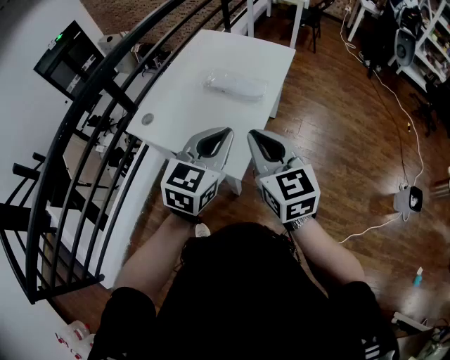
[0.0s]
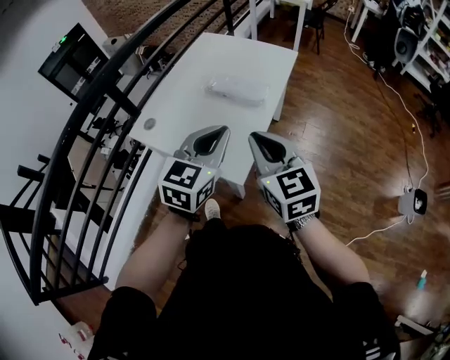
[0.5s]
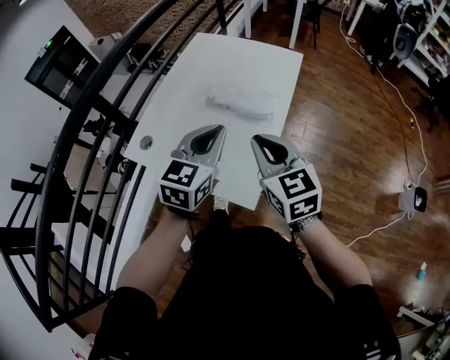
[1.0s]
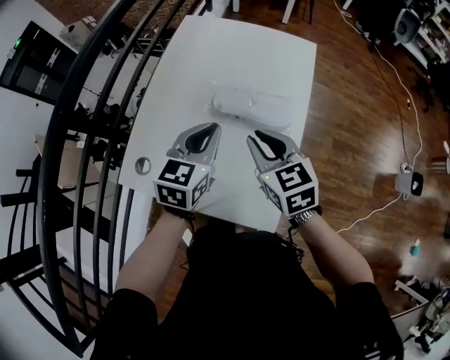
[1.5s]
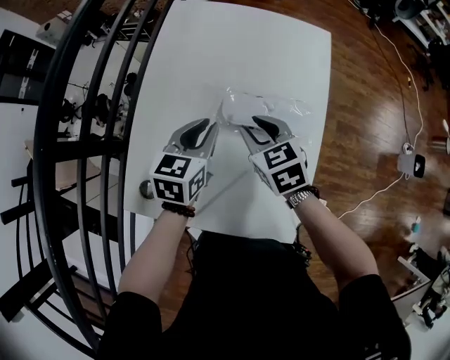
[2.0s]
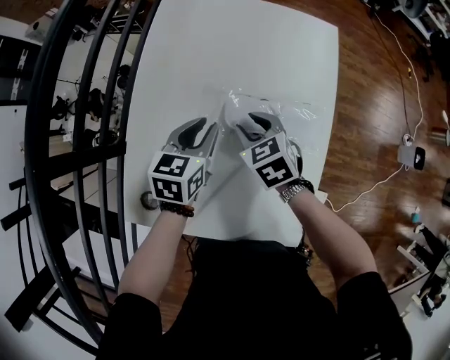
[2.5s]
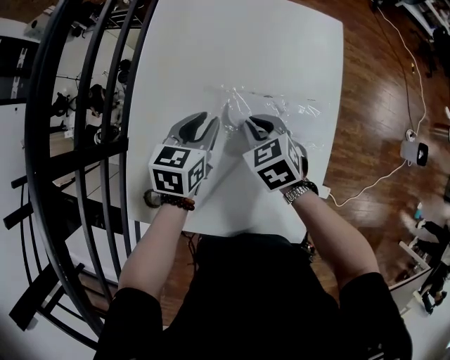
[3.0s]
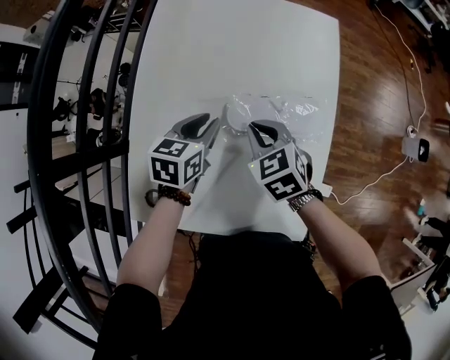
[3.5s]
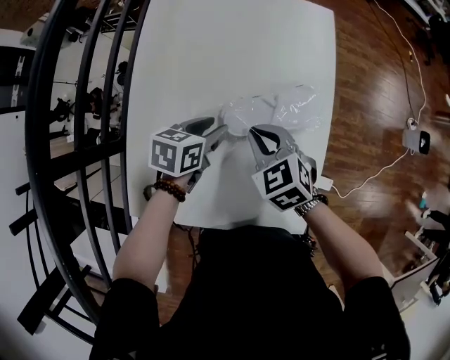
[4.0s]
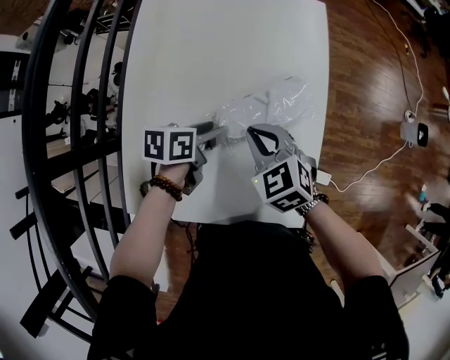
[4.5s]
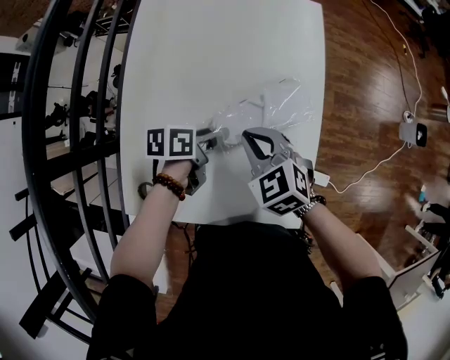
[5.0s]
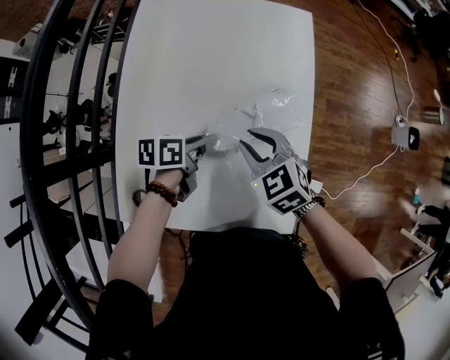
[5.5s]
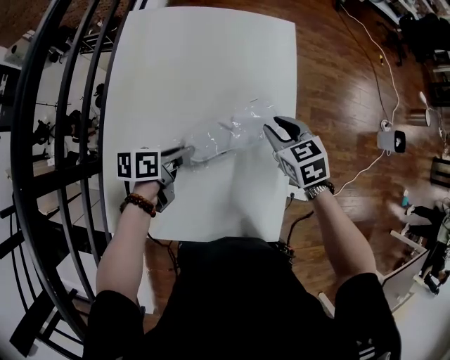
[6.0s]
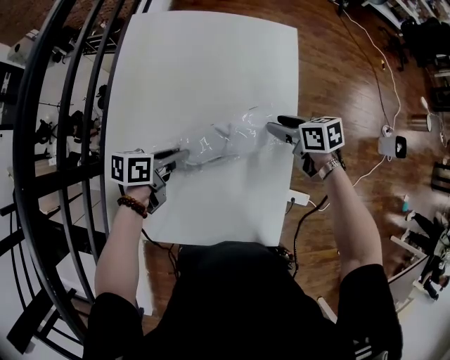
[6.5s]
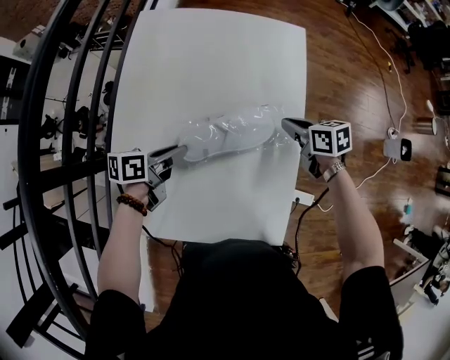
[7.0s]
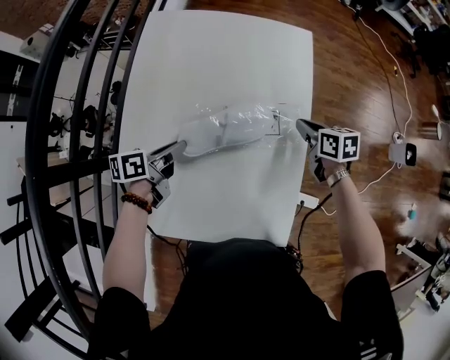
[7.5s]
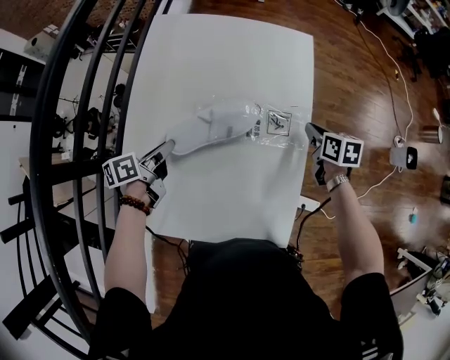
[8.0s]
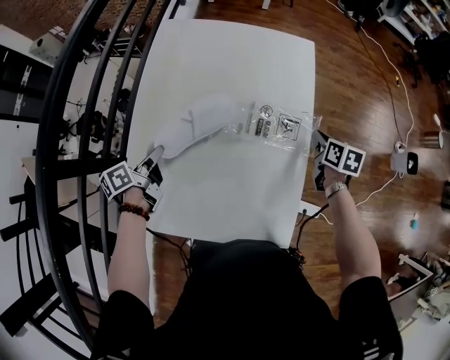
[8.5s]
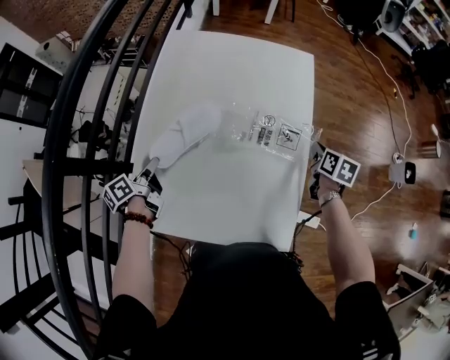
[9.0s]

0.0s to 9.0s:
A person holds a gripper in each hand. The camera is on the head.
0.0s to 2.0s: The left gripper moves forward, downward and to the left, about 40 cm, and swivels approximately 30 degrees, while the right gripper travels forward and downward by roughly 35 cm, angles its fingers downward, by roughly 30 degrees, and opens its fingers.
2.0s to 4.5s: The right gripper shifts some 5 cm backward, and closes its fingers; the left gripper goes some 10 cm downward, rotates approximately 40 degrees, and opens up.
4.5s to 7.0s: The left gripper goes about 5 cm to the left, and closes up, while the right gripper goes about 20 cm to the right and forward, twists roughly 40 degrees clockwise, seen from behind, and opens, then closes once more.
7.0s to 9.0s: The right gripper heads to the right, covering roughly 10 cm, and swivels roughly 40 degrees. The left gripper heads to the left, covering some 15 cm, and changes its angle by some 40 degrees.

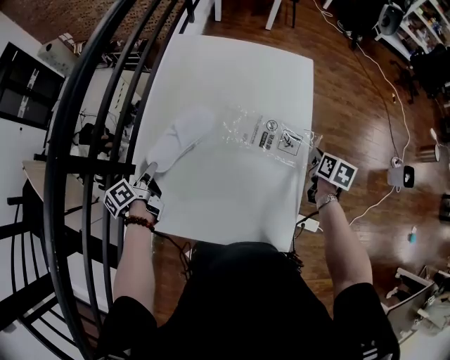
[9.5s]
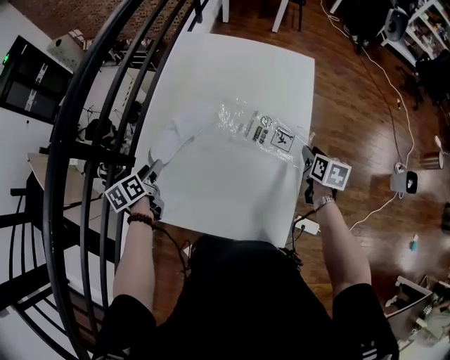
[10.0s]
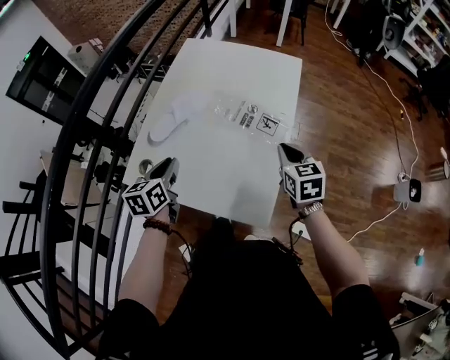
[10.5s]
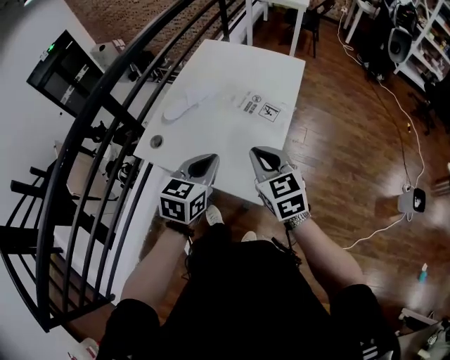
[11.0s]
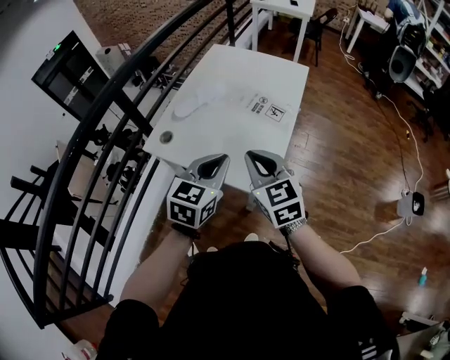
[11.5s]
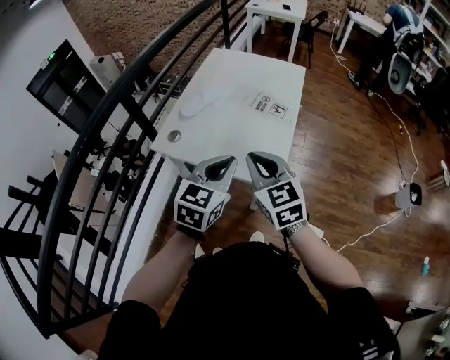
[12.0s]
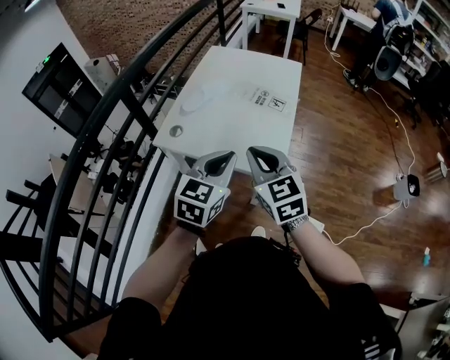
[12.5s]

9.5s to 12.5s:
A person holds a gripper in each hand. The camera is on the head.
9.5s to 11.0s: The right gripper moves backward, upward and to the left, about 30 cm, rotates roughly 60 degrees, and opens, then closes again. Meanwhile the left gripper travels to the right, backward and upward by about 40 cm, rotates around the line of its fingers by approximately 60 degrees, clockwise from behind, and opens, then closes again.
11.0s to 12.5s: The right gripper travels backward, to the left and upward by some 15 cm, while the left gripper is displaced backward and upward by roughly 10 cm.

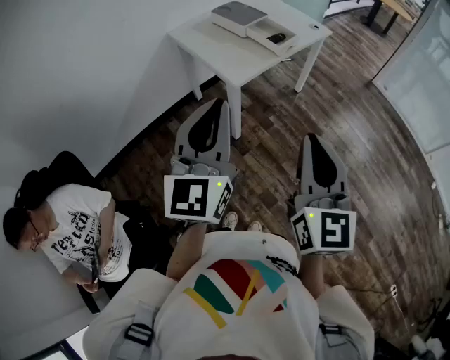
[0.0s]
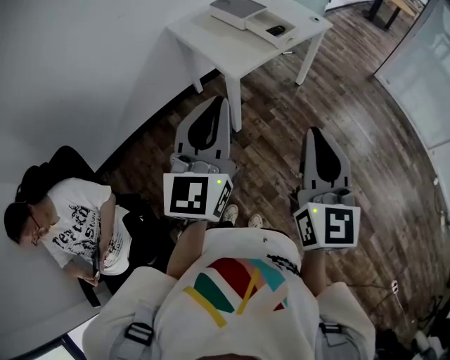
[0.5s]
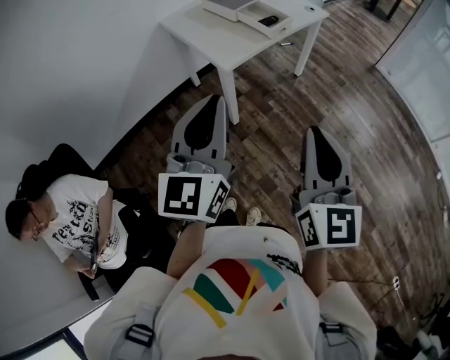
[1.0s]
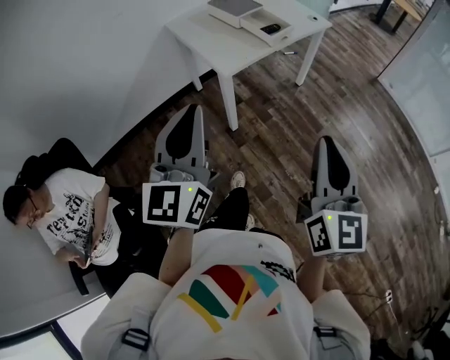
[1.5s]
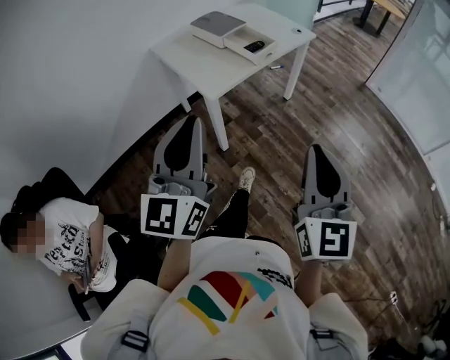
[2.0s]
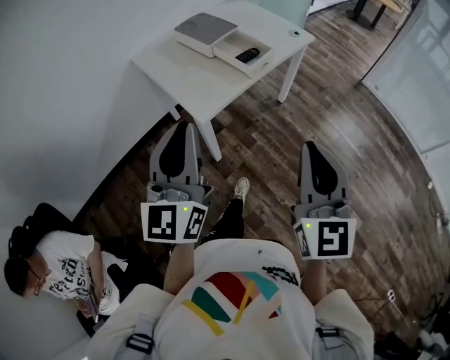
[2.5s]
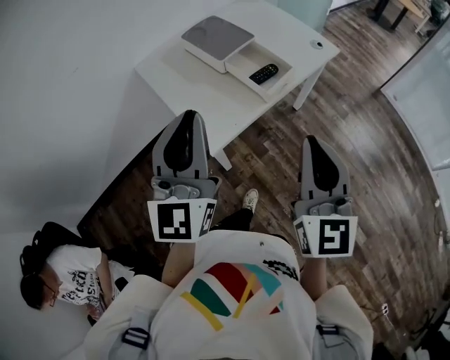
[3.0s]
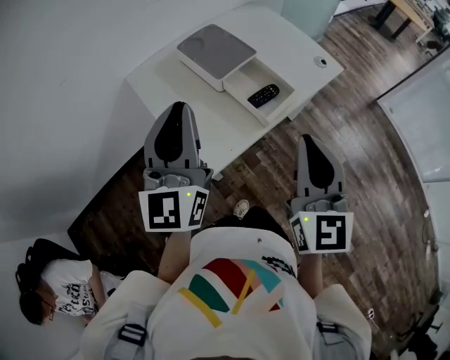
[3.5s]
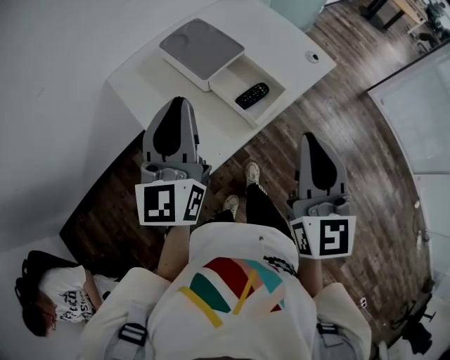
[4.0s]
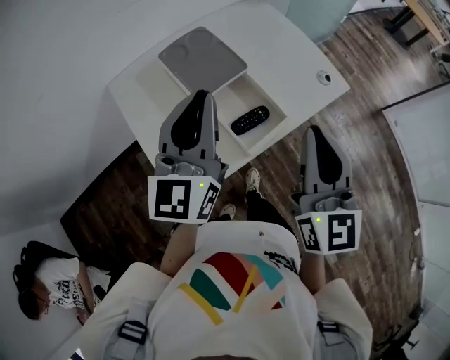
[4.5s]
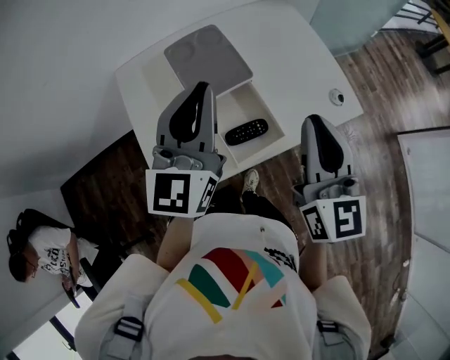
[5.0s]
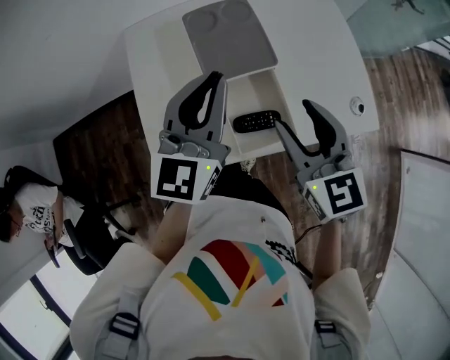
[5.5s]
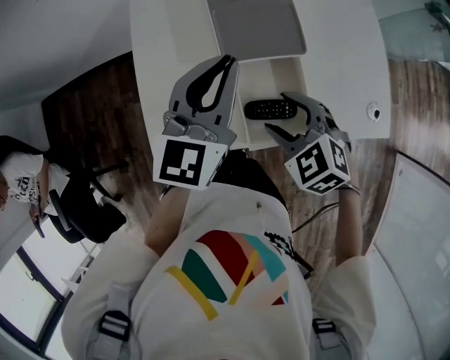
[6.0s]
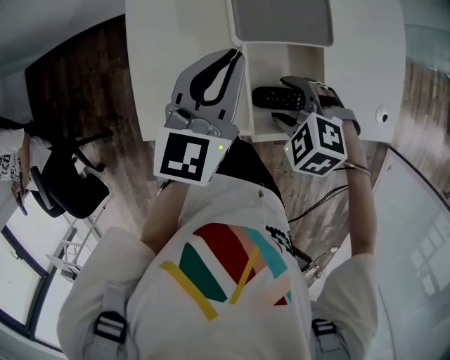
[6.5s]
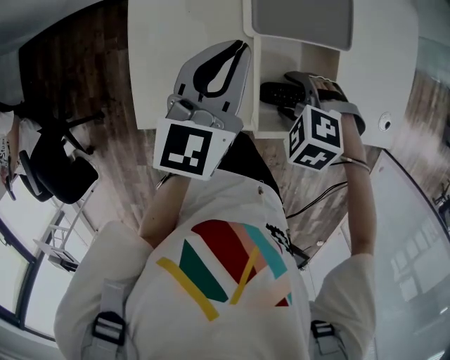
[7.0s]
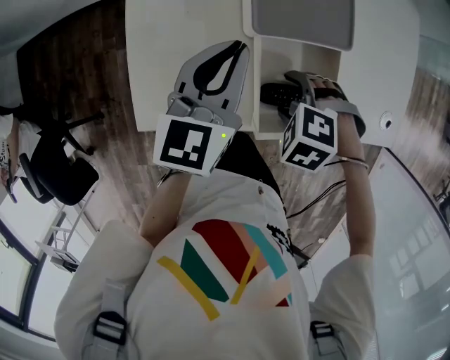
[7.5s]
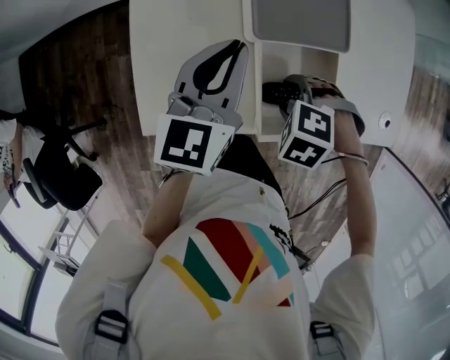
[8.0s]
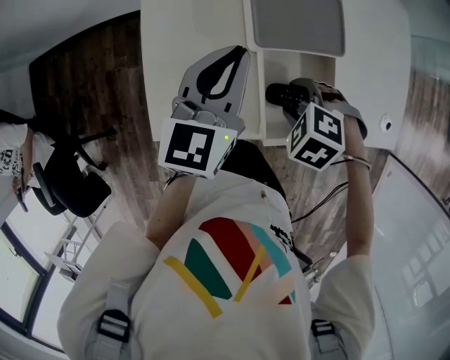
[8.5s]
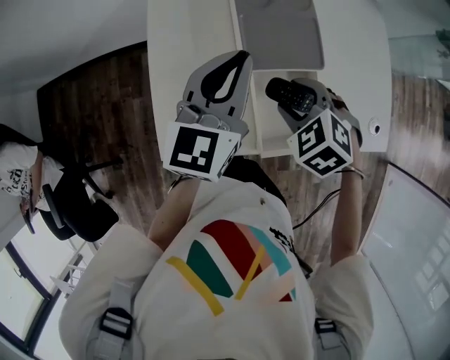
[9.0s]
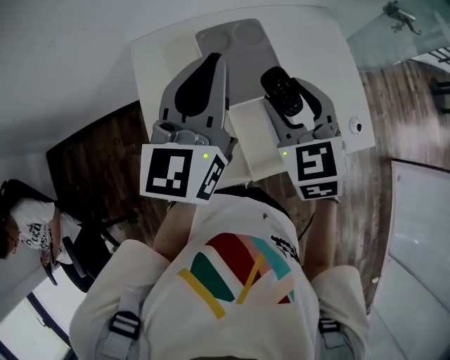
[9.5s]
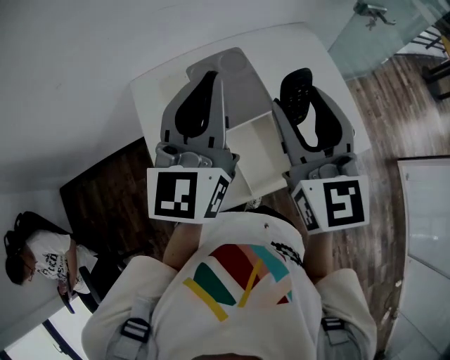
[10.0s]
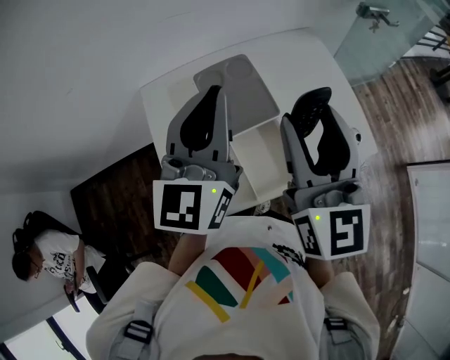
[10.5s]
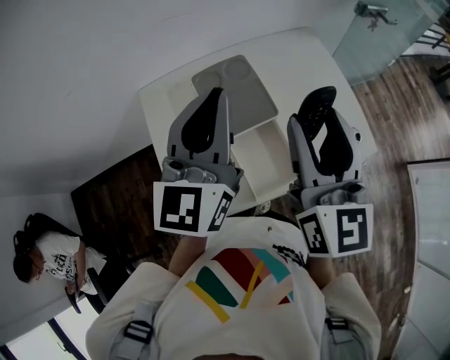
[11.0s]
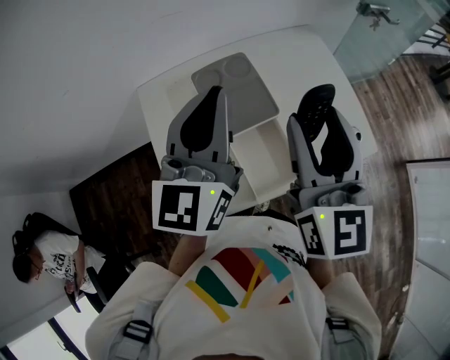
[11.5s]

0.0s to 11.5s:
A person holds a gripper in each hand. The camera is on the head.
0.0s to 2.0s: The left gripper travels to the right by about 5 cm; the right gripper heads to the right, covering about 10 cm.
2.0s to 4.0s: Both grippers are carried forward, approximately 50 cm.
4.0s to 6.0s: The left gripper shifts by approximately 20 cm, and swivels roughly 20 degrees. Meanwhile the right gripper moves downward, approximately 25 cm, points its fingers about 50 degrees further downward, and opens its fingers.
6.0s to 7.5s: The grippers both shift downward by some 10 cm. The right gripper angles its fingers downward, by about 30 degrees.
7.5s to 9.5s: The grippers both shift upward by approximately 25 cm. The right gripper tilts its fingers approximately 60 degrees upward; the left gripper turns by approximately 20 degrees.
9.5s to 11.5s: The right gripper moves upward and to the right, approximately 15 cm, and angles its fingers upward, by roughly 30 degrees. The left gripper moves some 5 cm.

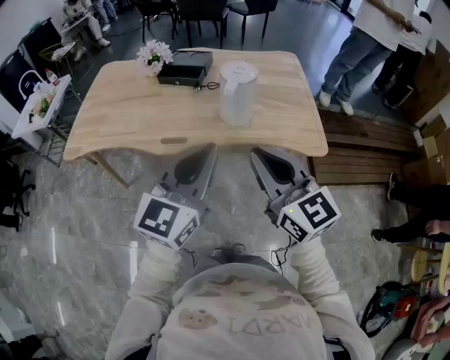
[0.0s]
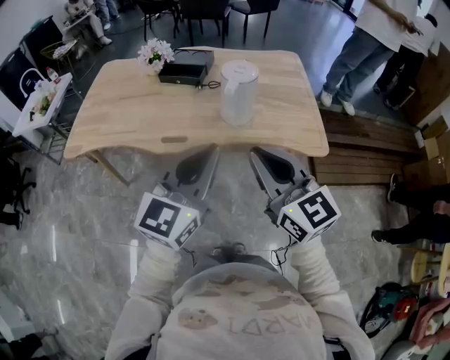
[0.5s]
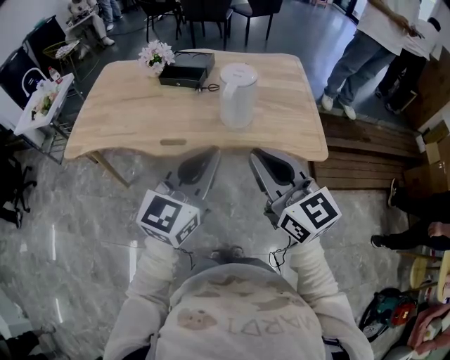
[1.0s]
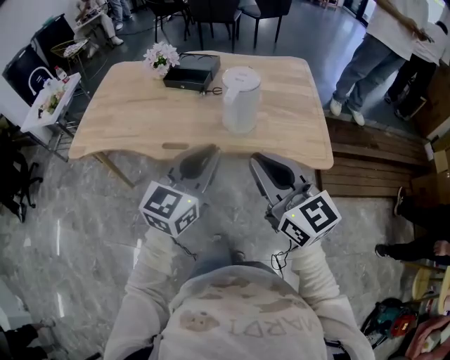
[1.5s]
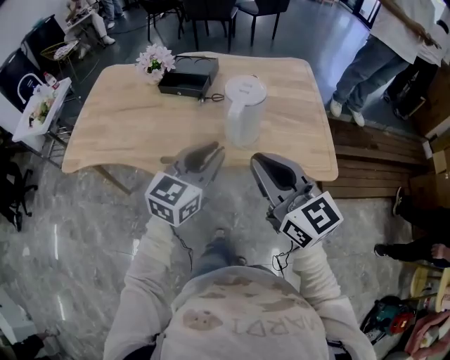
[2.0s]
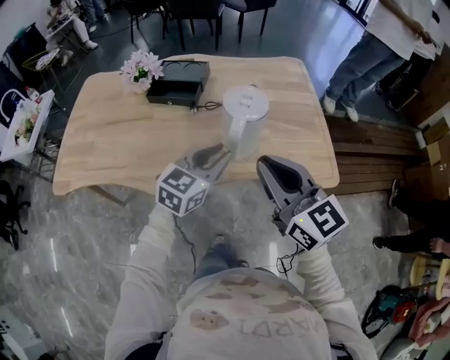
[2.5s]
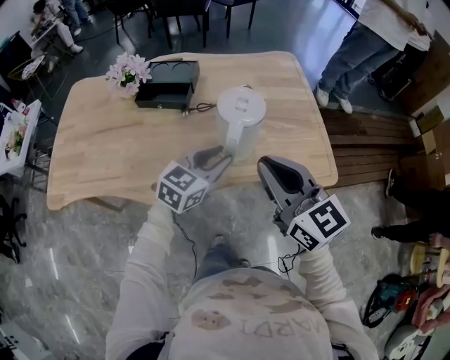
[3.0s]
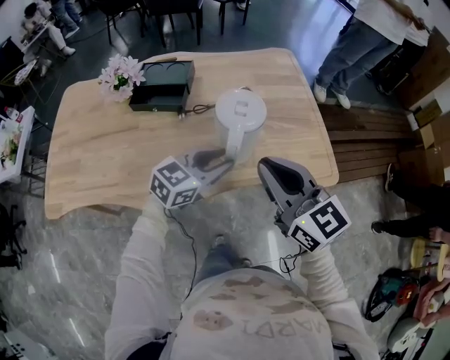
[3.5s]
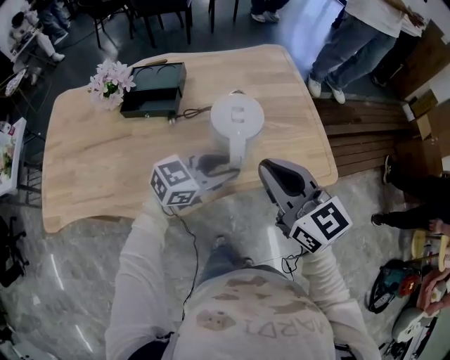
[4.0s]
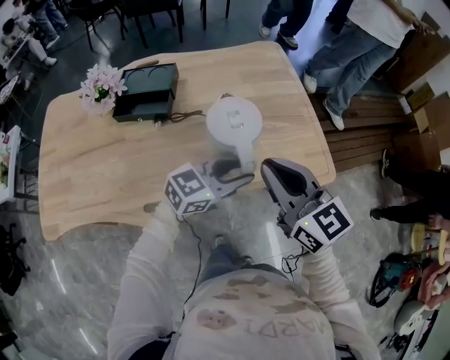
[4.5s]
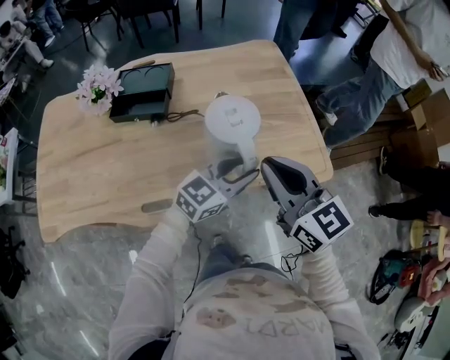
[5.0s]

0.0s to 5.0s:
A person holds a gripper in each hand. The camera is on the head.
0.0s to 2.5s: The left gripper goes about 30 cm forward and downward, and turns by some 20 degrees. The right gripper is displaced forward by roughly 20 cm.
2.5s to 5.0s: The right gripper is displaced forward by approximately 10 cm, while the left gripper heads to the right and forward, covering some 10 cm, and swivels approximately 30 degrees.
